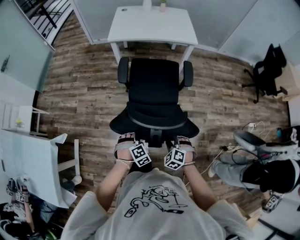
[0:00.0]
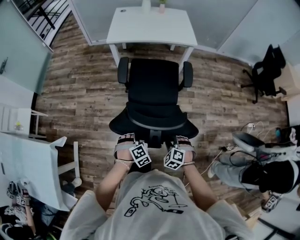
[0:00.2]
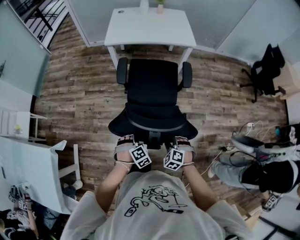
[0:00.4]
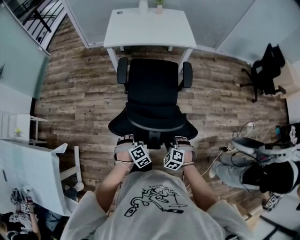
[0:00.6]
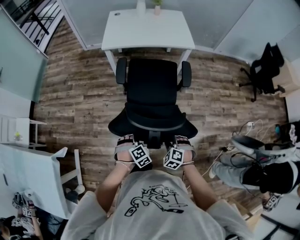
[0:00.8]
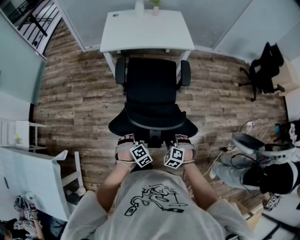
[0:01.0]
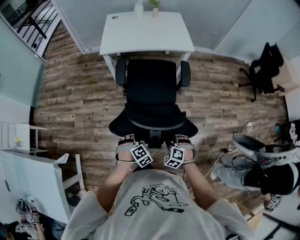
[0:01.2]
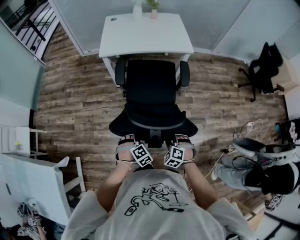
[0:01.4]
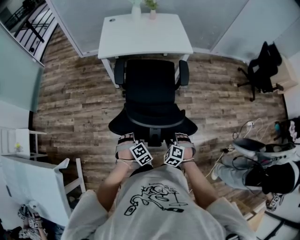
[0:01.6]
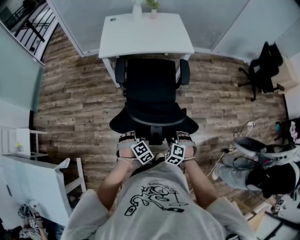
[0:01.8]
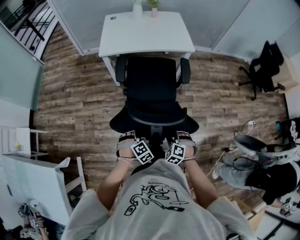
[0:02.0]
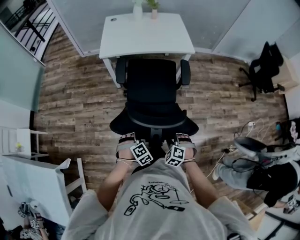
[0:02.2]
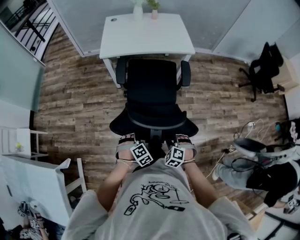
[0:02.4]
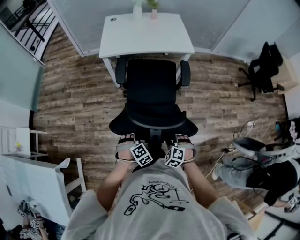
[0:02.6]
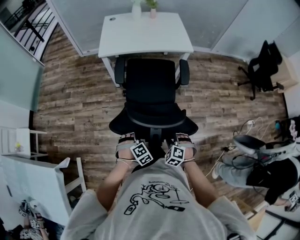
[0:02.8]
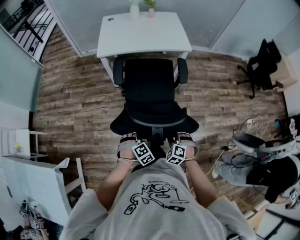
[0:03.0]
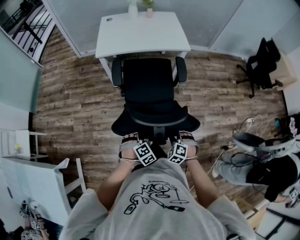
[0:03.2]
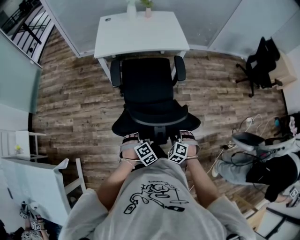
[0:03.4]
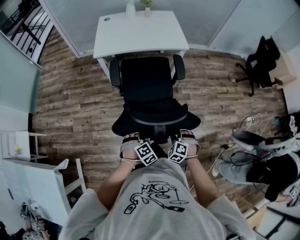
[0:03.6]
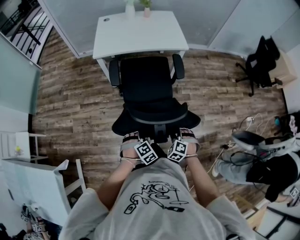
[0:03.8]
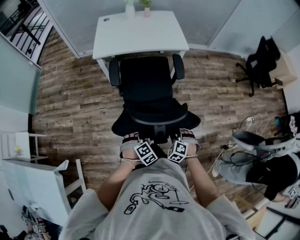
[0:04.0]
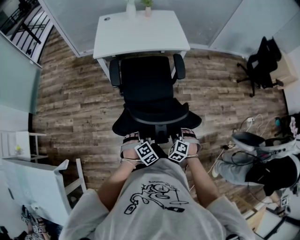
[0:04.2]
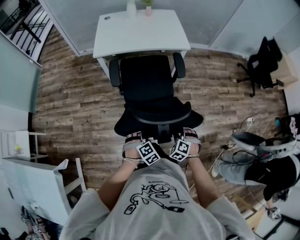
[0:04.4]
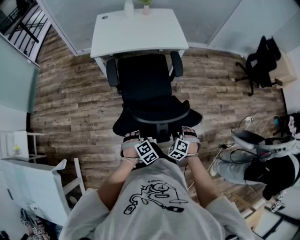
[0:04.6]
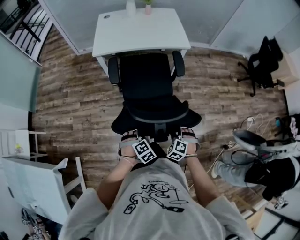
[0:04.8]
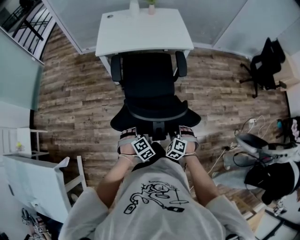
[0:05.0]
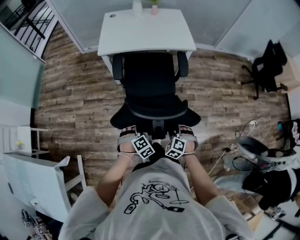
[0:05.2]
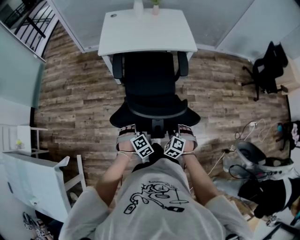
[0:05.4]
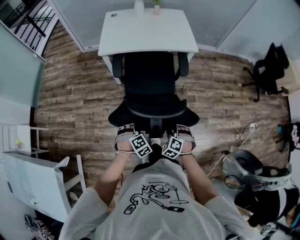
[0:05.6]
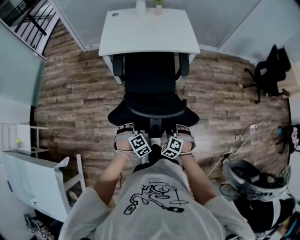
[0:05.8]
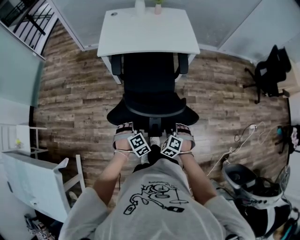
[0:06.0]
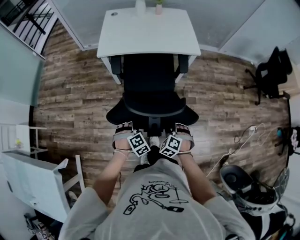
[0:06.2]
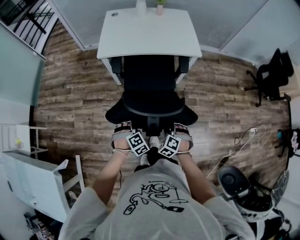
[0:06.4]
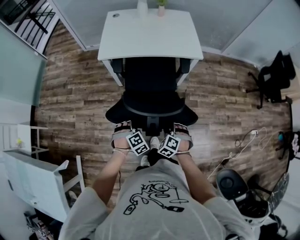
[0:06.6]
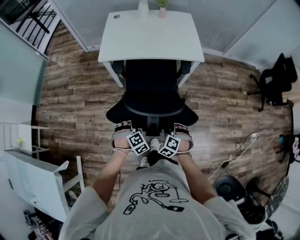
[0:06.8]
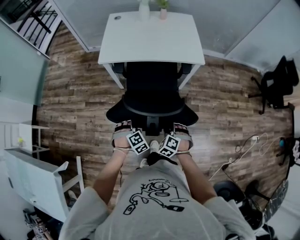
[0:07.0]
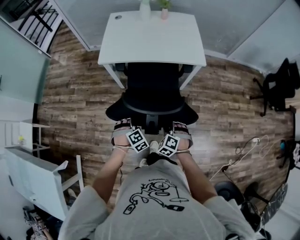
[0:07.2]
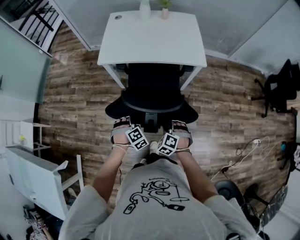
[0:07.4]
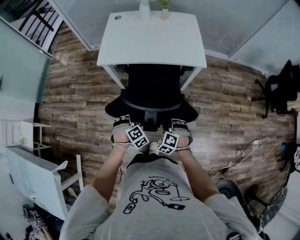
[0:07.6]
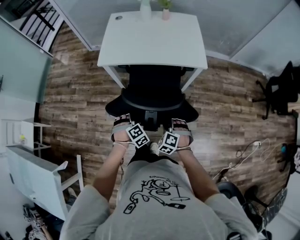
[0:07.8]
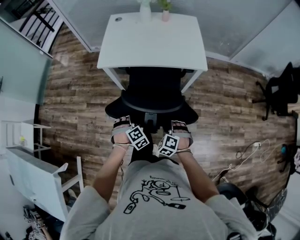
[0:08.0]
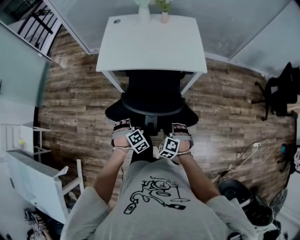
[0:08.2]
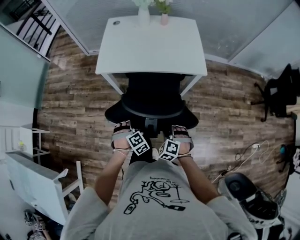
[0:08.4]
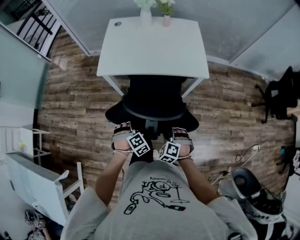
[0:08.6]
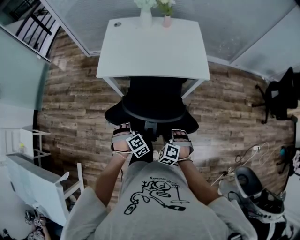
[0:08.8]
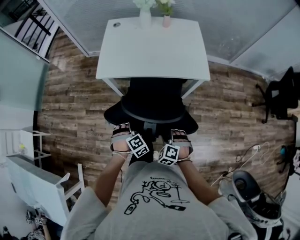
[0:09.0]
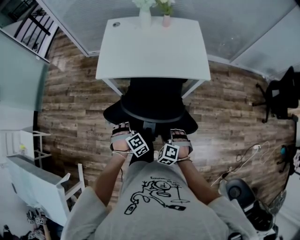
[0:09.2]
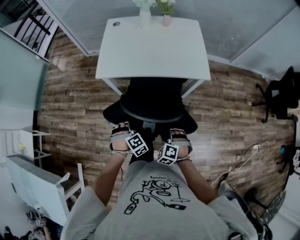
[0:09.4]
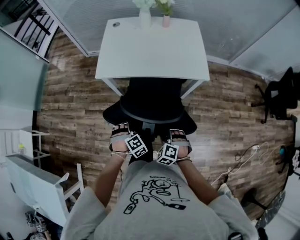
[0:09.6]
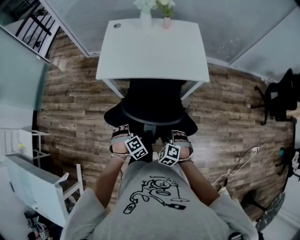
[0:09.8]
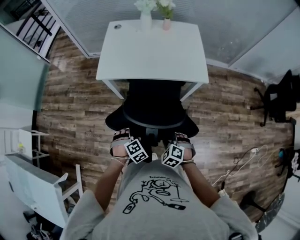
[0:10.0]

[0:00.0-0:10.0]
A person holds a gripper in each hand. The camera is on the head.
0:00.0 to 0:01.4: Both grippers move forward, about 15 cm.
0:01.4 to 0:02.8: There are only small adjustments of the grippers.
0:02.8 to 0:04.2: Both grippers move to the right, about 5 cm.
0:04.2 to 0:05.8: The left gripper goes about 10 cm forward and to the left; the right gripper heads forward, covering about 5 cm.
0:05.8 to 0:07.2: Both grippers move forward, roughly 15 cm.
0:07.2 to 0:08.6: The two grippers go some 5 cm forward.
0:08.6 to 0:10.0: The grippers make only small movements.

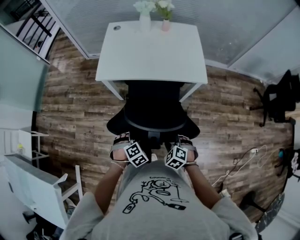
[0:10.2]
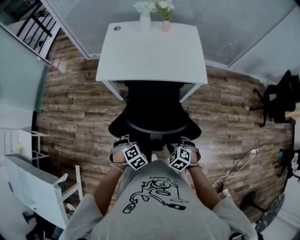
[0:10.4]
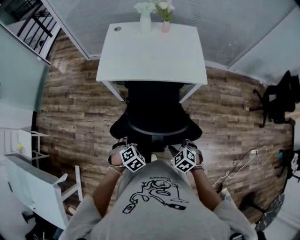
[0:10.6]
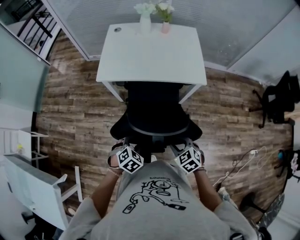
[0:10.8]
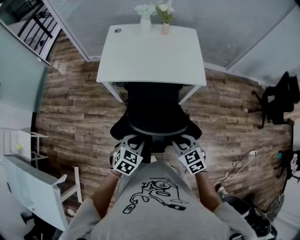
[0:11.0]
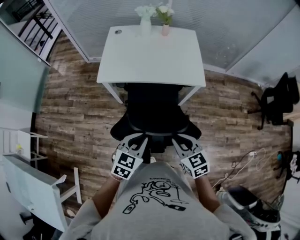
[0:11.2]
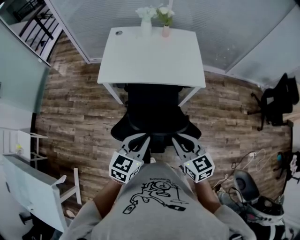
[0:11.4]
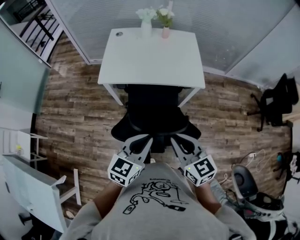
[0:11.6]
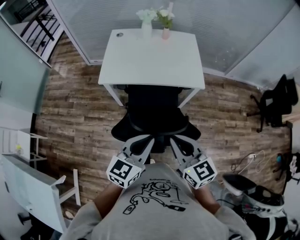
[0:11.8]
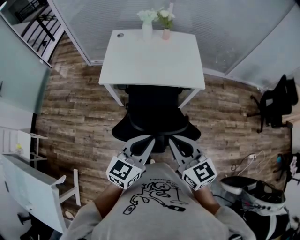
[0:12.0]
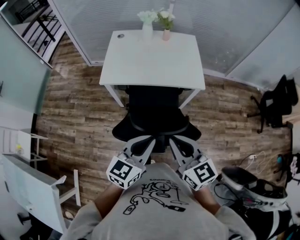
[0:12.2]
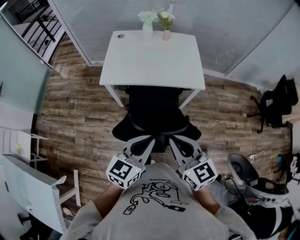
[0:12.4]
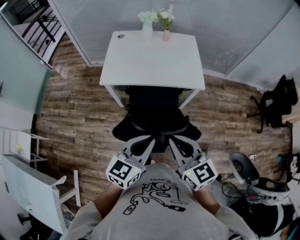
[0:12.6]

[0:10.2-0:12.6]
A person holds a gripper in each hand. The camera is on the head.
0:10.2 to 0:11.4: Both grippers move upward, some 20 cm. The right gripper tips its fingers upward by roughly 40 degrees, and closes up, while the left gripper tilts its fingers approximately 50 degrees upward, and closes.
0:11.4 to 0:12.6: Both grippers travel together upward, some 5 cm.

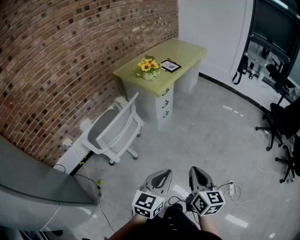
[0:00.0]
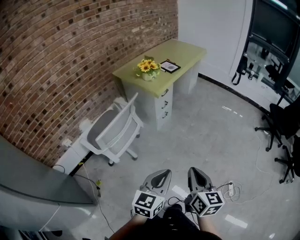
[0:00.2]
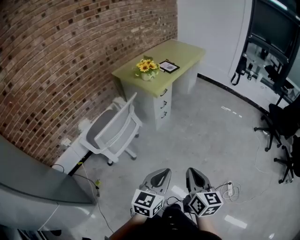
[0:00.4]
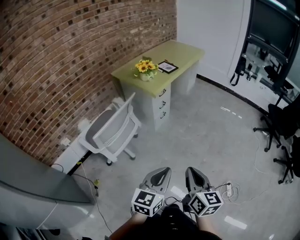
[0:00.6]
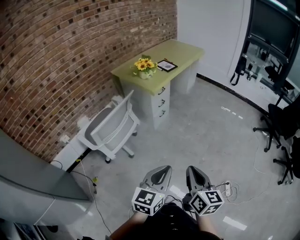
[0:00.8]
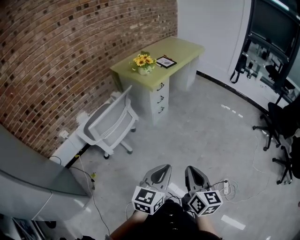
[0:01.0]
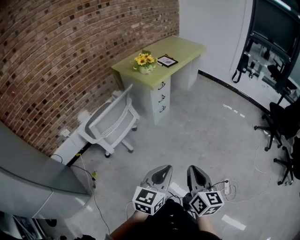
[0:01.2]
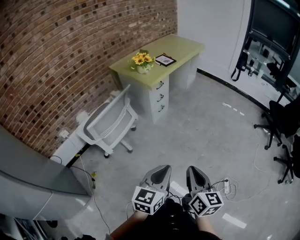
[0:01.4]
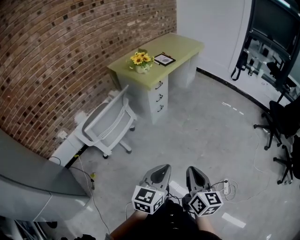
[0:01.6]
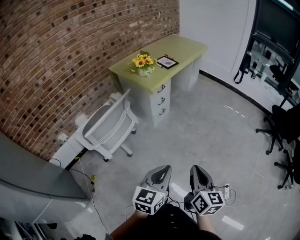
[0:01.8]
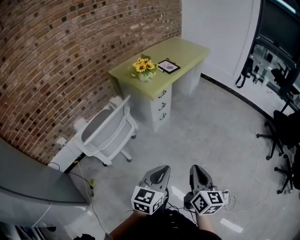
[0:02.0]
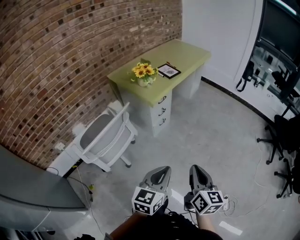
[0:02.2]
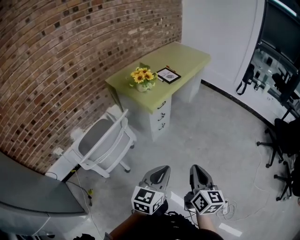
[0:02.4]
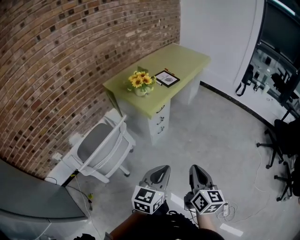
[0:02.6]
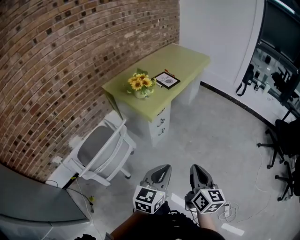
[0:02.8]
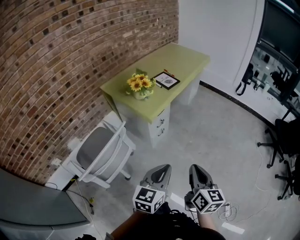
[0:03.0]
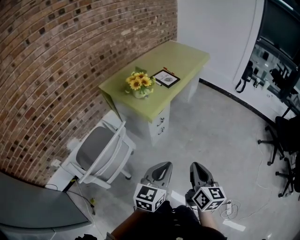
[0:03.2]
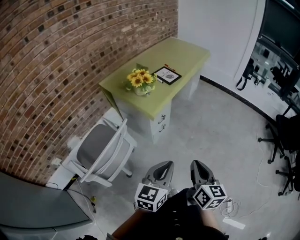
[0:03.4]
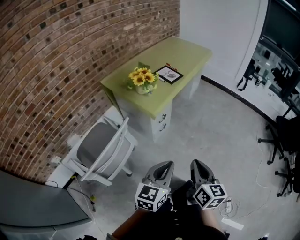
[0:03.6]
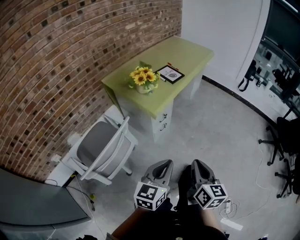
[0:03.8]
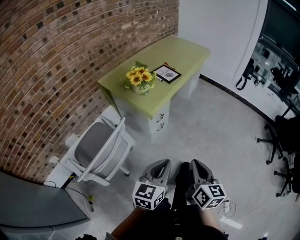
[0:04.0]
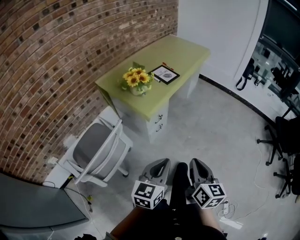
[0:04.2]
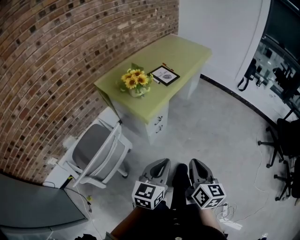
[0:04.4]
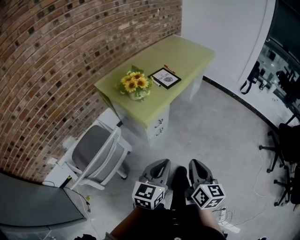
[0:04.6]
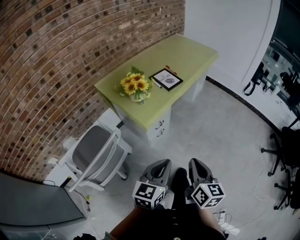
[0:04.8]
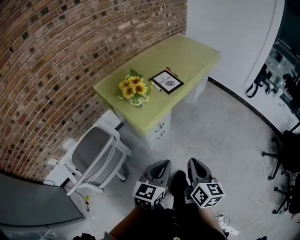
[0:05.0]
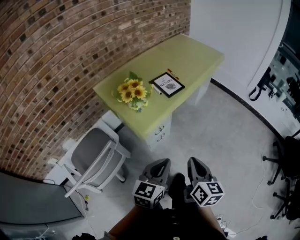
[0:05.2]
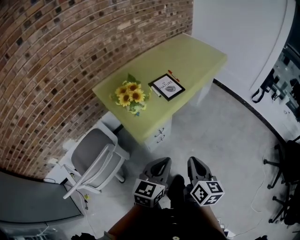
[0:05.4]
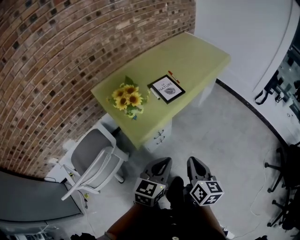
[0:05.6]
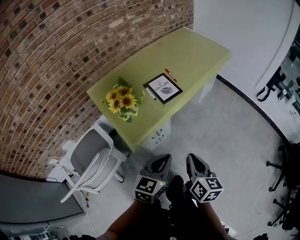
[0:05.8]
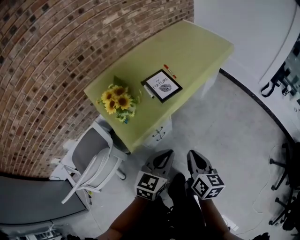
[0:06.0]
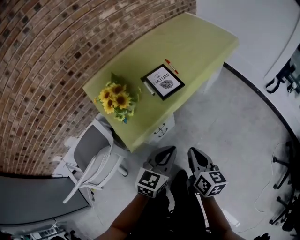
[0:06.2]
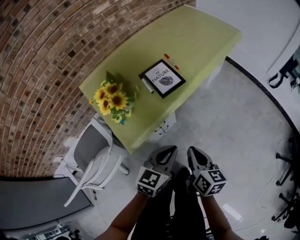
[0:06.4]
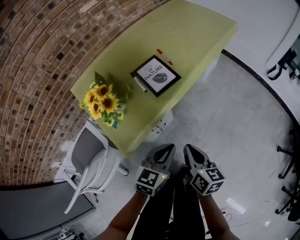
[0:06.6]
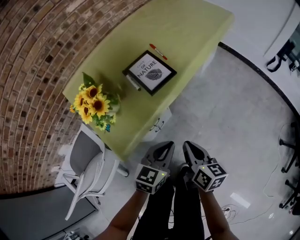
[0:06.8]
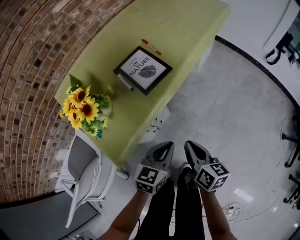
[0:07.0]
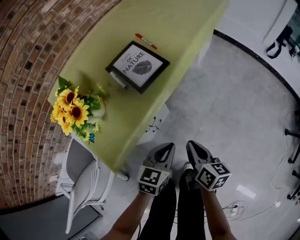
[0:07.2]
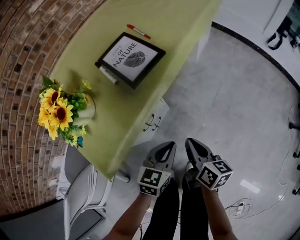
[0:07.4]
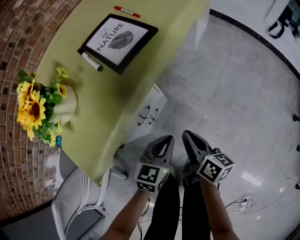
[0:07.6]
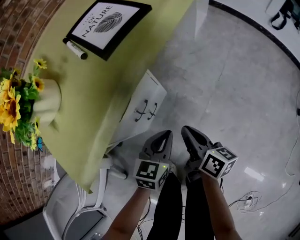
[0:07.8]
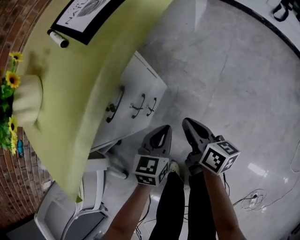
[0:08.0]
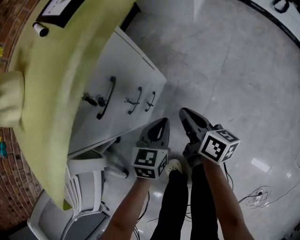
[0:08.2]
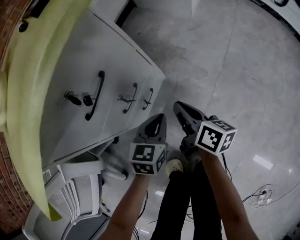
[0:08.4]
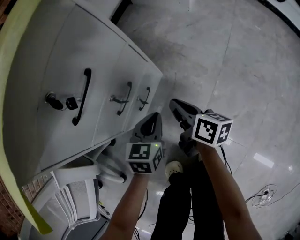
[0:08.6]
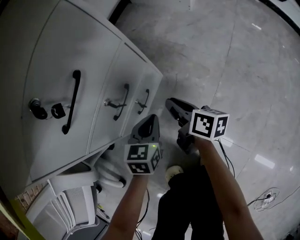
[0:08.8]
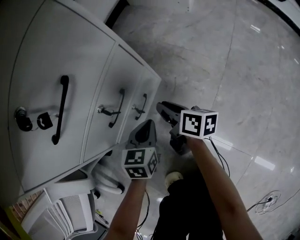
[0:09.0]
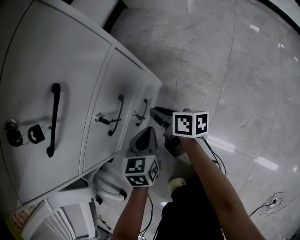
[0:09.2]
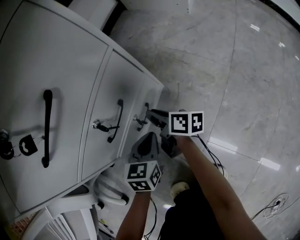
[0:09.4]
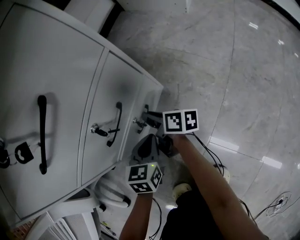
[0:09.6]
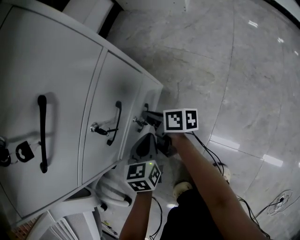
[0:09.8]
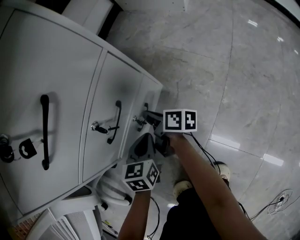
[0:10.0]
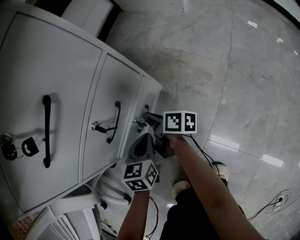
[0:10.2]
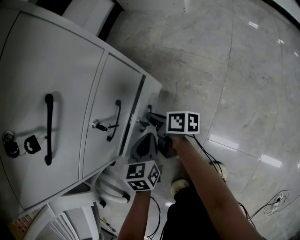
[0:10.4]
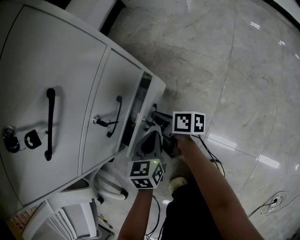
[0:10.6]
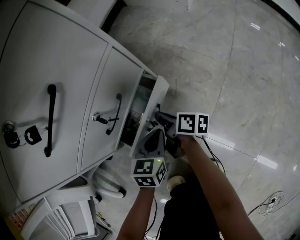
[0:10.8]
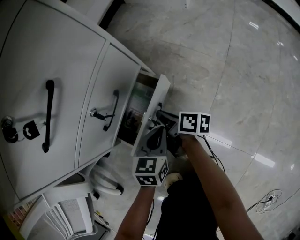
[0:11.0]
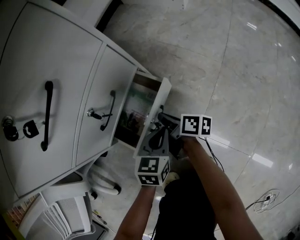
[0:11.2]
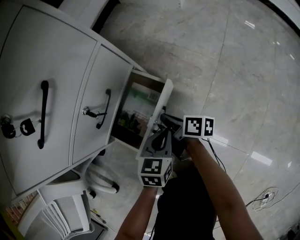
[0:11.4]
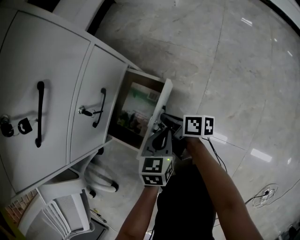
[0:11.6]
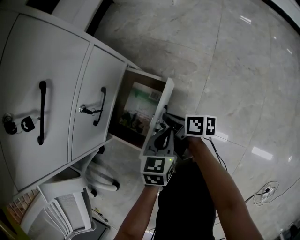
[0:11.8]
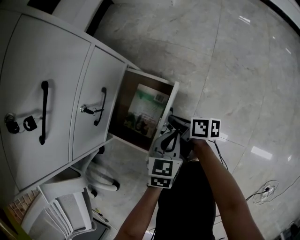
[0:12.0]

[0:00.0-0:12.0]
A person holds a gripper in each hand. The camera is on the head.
0:00.0 to 0:01.6: Both grippers travel together to the right, roughly 5 cm.
0:01.6 to 0:03.0: The grippers both shift forward by roughly 30 cm.
0:03.0 to 0:04.4: Both grippers travel together forward, about 10 cm.
0:04.4 to 0:06.0: Both grippers move forward, approximately 30 cm.
0:06.0 to 0:07.6: The grippers both shift downward by roughly 35 cm. The right gripper changes its angle by some 20 degrees.
0:07.6 to 0:09.0: The two grippers go about 30 cm downward.
0:09.0 to 0:10.4: The right gripper travels downward and to the left by approximately 10 cm.
0:10.4 to 0:12.0: The right gripper heads backward and to the right, covering about 15 cm. Meanwhile the left gripper is displaced to the right and backward by some 15 cm, and turns by roughly 20 degrees.
